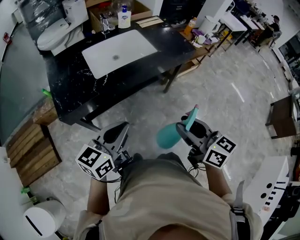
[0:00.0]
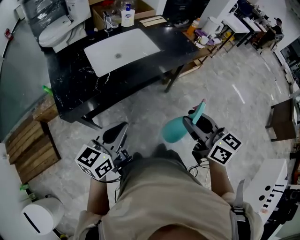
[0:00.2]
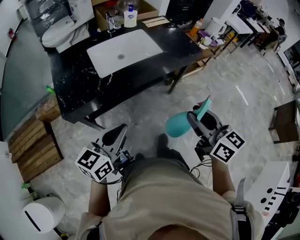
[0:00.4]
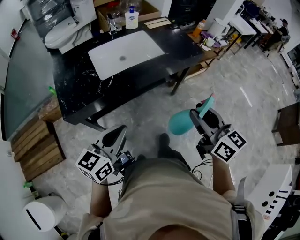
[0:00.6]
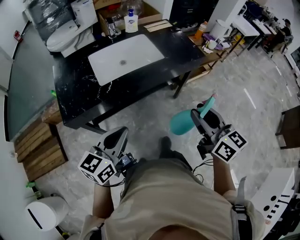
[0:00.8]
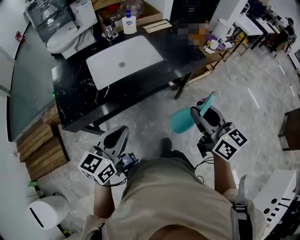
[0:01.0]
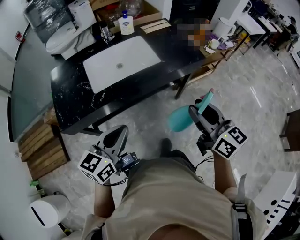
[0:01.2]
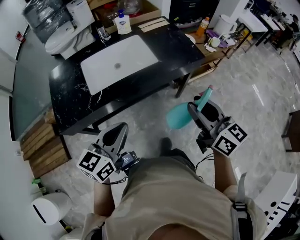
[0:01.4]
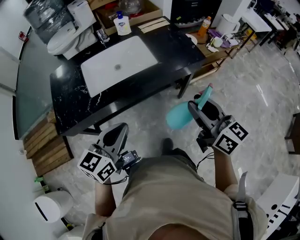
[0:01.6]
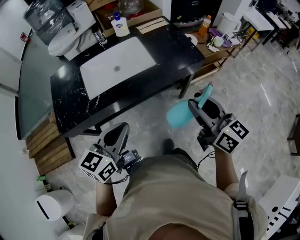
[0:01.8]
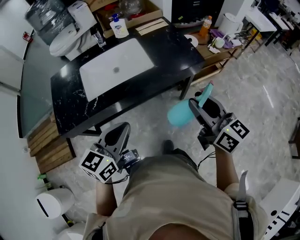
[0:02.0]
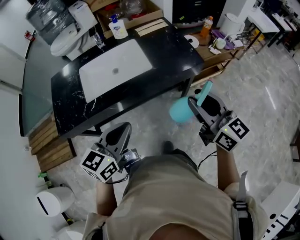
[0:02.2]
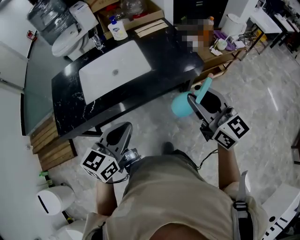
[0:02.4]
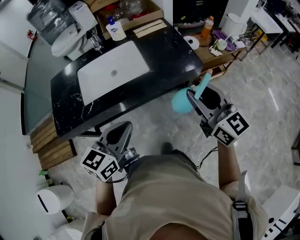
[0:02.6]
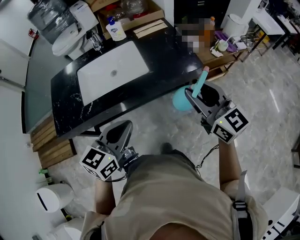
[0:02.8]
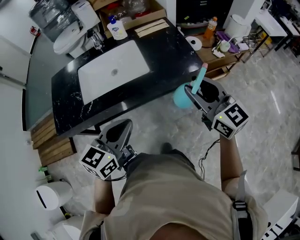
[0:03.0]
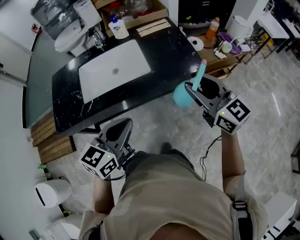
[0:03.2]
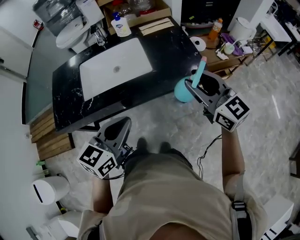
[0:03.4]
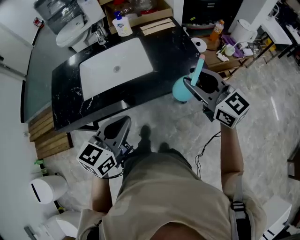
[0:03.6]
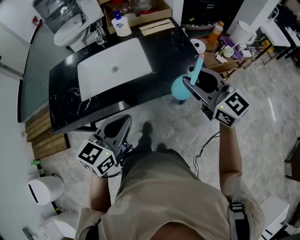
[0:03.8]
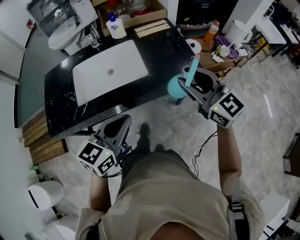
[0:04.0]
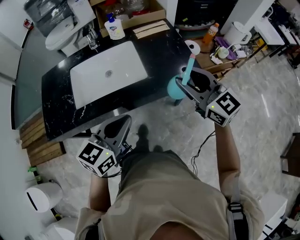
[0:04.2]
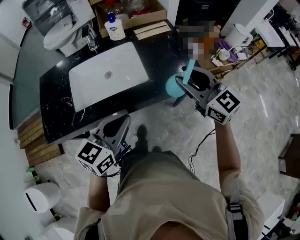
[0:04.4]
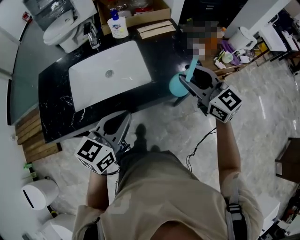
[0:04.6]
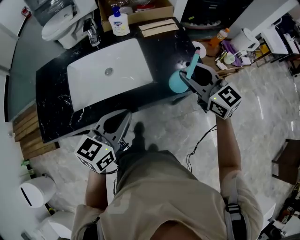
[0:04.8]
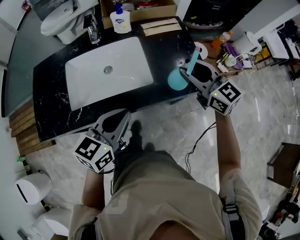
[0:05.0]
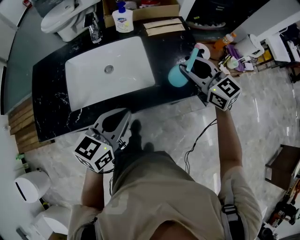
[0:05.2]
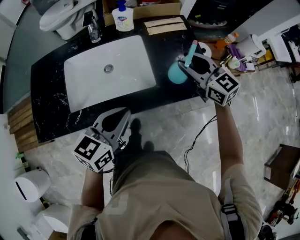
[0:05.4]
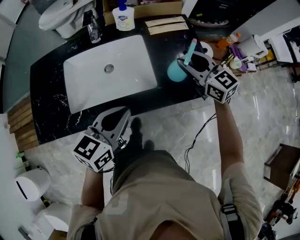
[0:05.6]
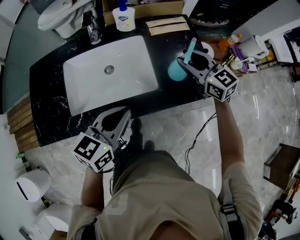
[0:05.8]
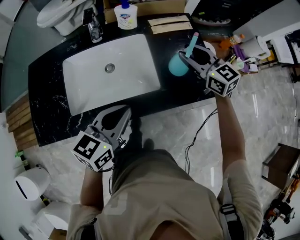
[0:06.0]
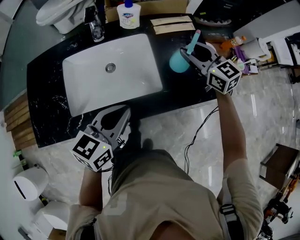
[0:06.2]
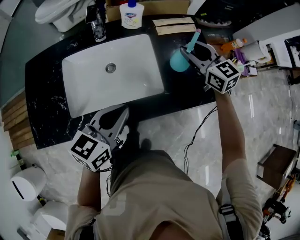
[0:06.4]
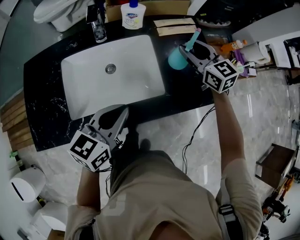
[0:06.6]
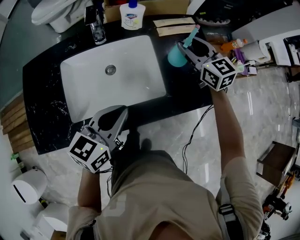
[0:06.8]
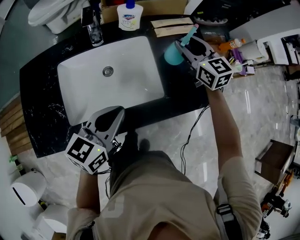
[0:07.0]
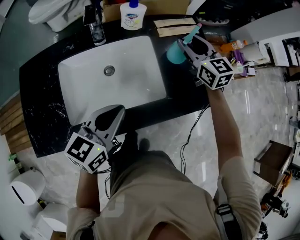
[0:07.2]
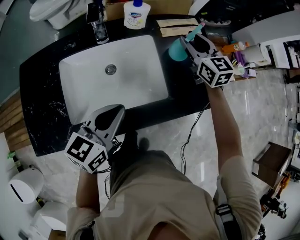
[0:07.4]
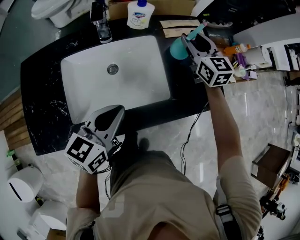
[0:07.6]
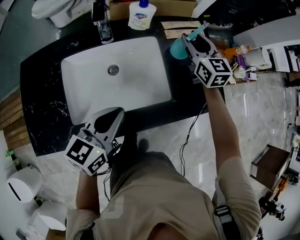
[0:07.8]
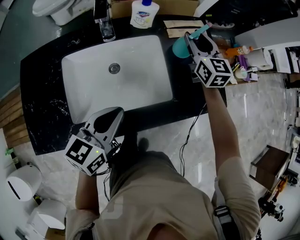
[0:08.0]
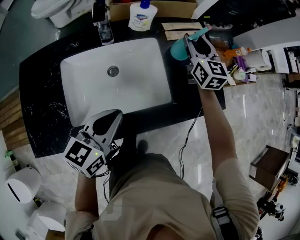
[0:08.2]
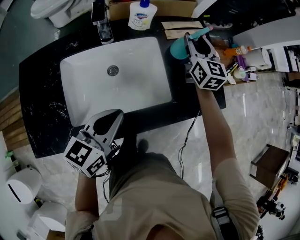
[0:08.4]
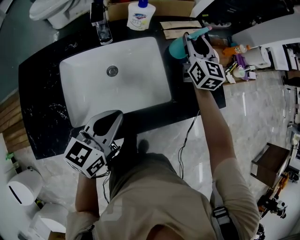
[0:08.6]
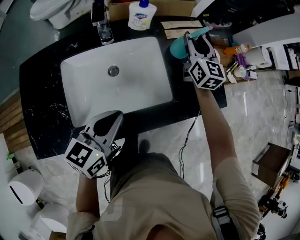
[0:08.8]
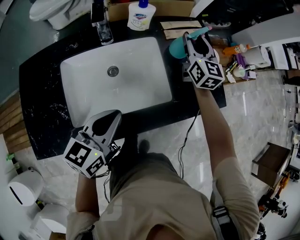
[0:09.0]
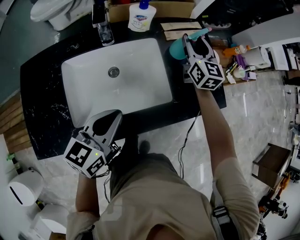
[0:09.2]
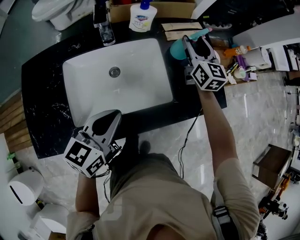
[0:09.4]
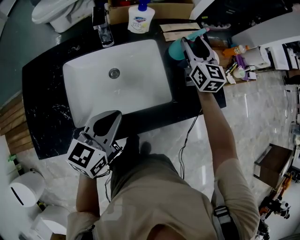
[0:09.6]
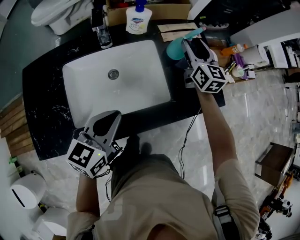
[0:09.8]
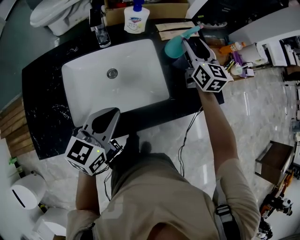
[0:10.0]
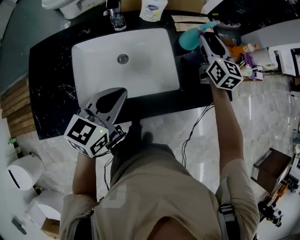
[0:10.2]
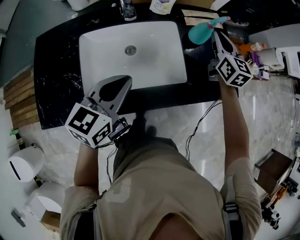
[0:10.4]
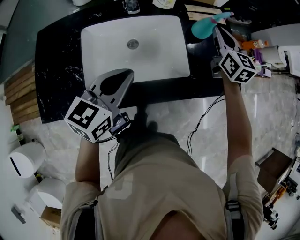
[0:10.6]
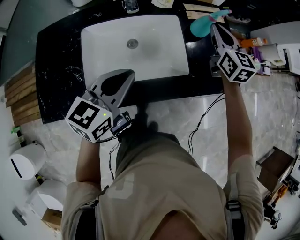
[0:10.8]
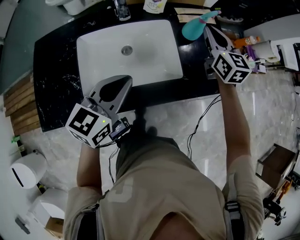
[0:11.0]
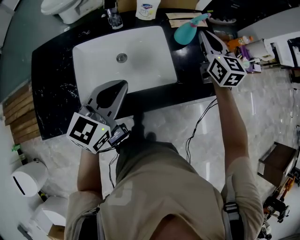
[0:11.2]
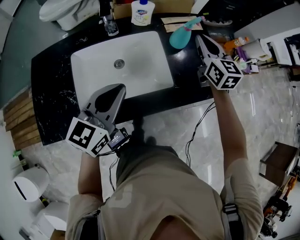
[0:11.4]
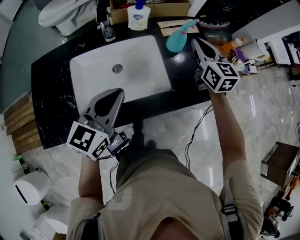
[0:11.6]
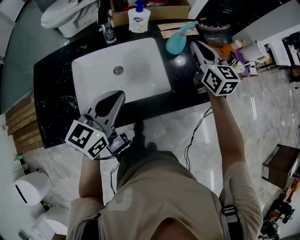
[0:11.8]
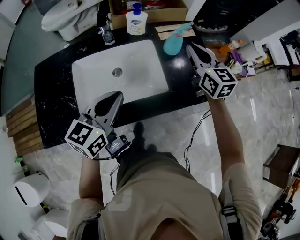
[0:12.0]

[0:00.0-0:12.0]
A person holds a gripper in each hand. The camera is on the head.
0:00.0 to 0:01.6: The left gripper heads forward and to the right, covering some 15 cm. The right gripper shifts about 20 cm forward and to the right.
0:01.6 to 0:03.0: The right gripper heads forward and to the right, covering approximately 15 cm, and rotates some 20 degrees, while the left gripper travels to the right and forward by approximately 15 cm.
0:03.0 to 0:04.4: The grippers both shift forward by approximately 10 cm.
0:04.4 to 0:06.0: The left gripper shifts about 10 cm forward; the right gripper moves forward and downward, approximately 20 cm.
0:06.0 to 0:07.6: The left gripper travels to the left by roughly 5 cm, while the right gripper moves forward, roughly 10 cm.
0:07.6 to 0:09.0: There are only small adjustments of the grippers.
0:09.0 to 0:10.4: The right gripper closes.
0:10.4 to 0:12.0: The right gripper moves backward, about 5 cm.

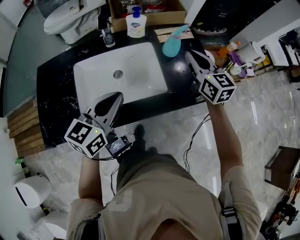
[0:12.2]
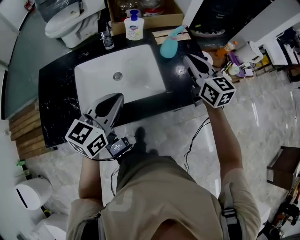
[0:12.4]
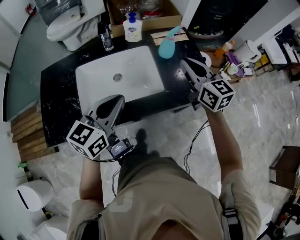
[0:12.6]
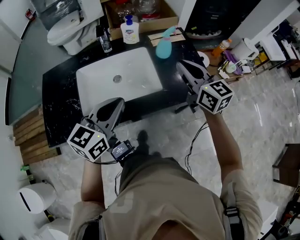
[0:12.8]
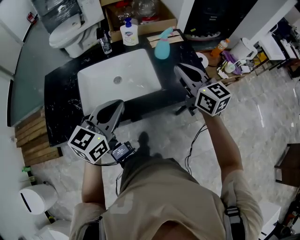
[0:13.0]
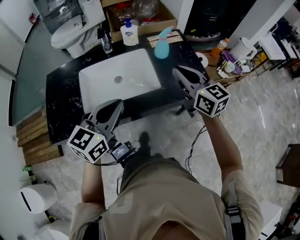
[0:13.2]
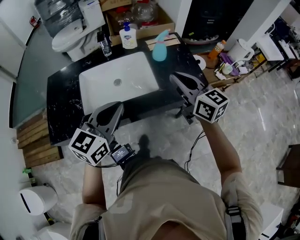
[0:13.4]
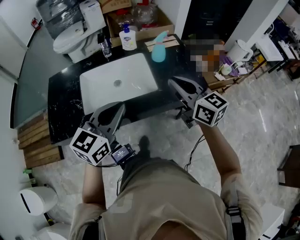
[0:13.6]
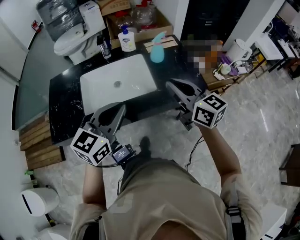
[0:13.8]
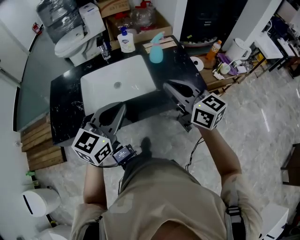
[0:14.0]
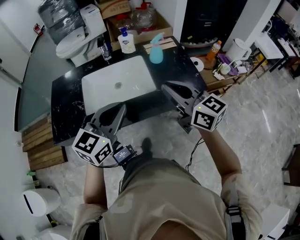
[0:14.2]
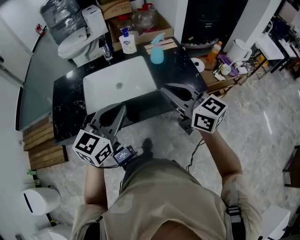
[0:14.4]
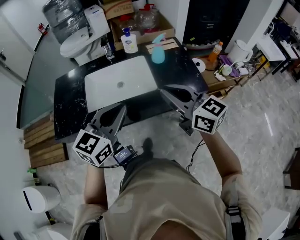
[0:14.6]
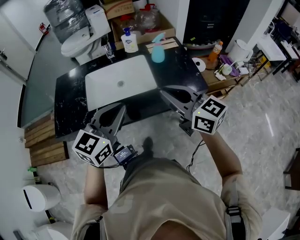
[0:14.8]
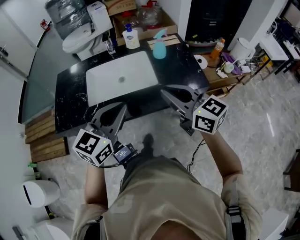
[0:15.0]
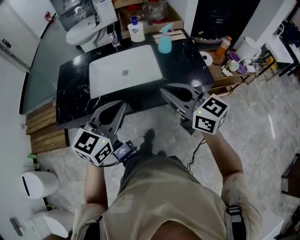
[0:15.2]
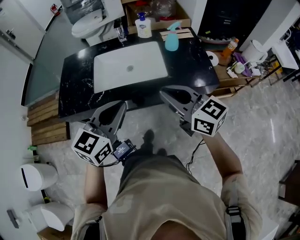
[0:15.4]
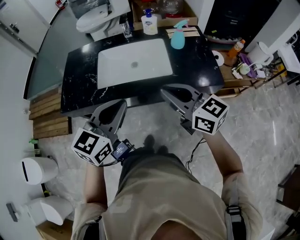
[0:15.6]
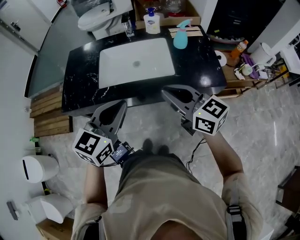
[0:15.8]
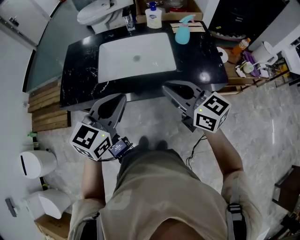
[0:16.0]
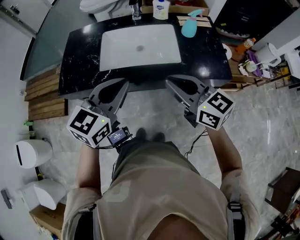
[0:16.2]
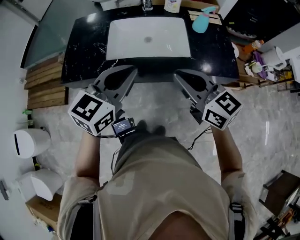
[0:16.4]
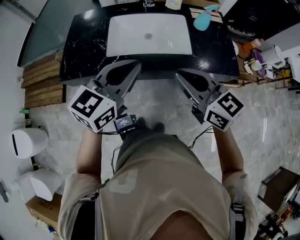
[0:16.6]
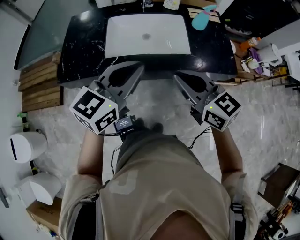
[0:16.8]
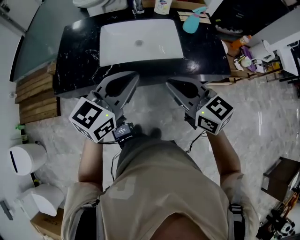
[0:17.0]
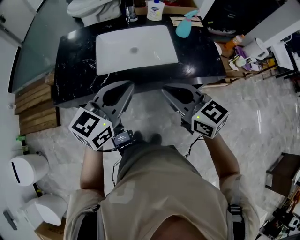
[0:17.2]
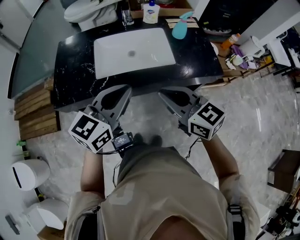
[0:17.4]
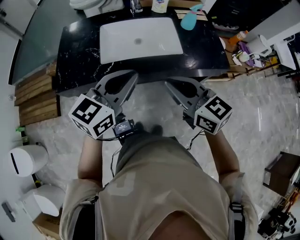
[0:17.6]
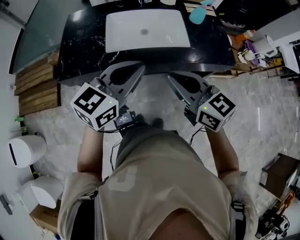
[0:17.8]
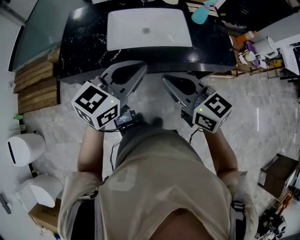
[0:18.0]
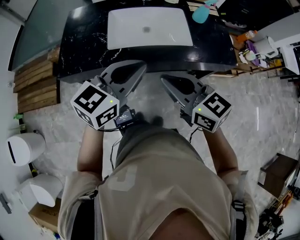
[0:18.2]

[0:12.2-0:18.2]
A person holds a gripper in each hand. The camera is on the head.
0:12.2 to 0:13.8: The left gripper is displaced backward, upward and to the right by approximately 15 cm. Meanwhile the right gripper heads backward, covering roughly 20 cm, and changes its angle by approximately 20 degrees.
0:13.8 to 0:15.2: Both grippers travel together backward, some 5 cm.
0:15.2 to 0:16.6: The grippers both shift to the left by approximately 5 cm.
0:16.6 to 0:18.2: The right gripper shifts roughly 10 cm to the left.

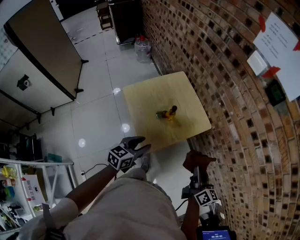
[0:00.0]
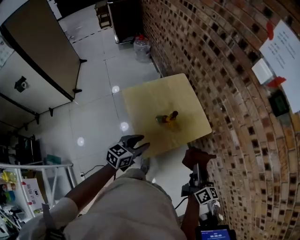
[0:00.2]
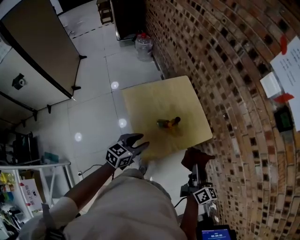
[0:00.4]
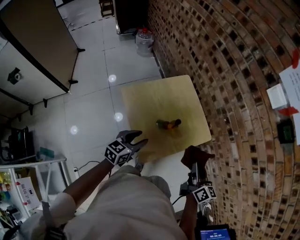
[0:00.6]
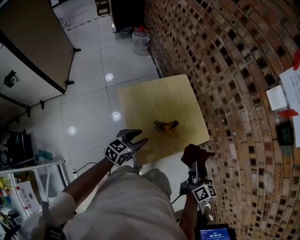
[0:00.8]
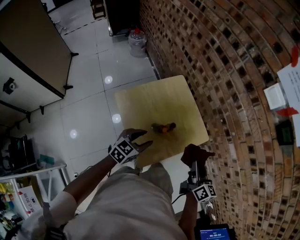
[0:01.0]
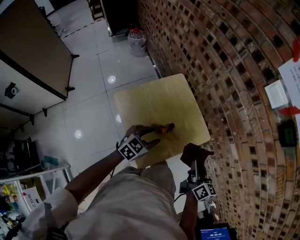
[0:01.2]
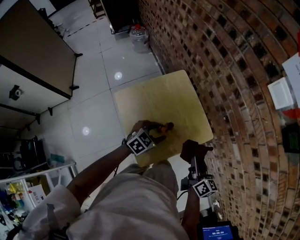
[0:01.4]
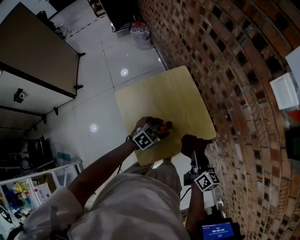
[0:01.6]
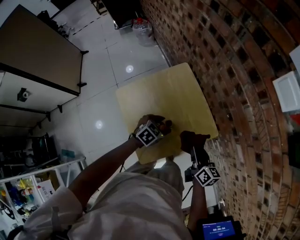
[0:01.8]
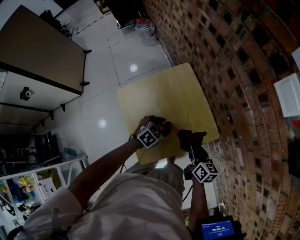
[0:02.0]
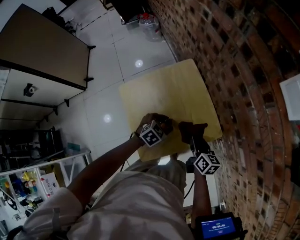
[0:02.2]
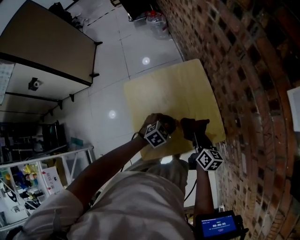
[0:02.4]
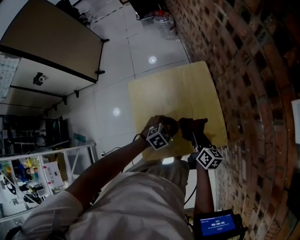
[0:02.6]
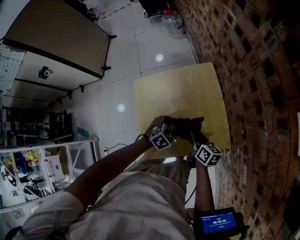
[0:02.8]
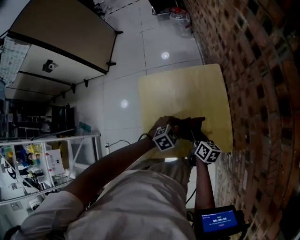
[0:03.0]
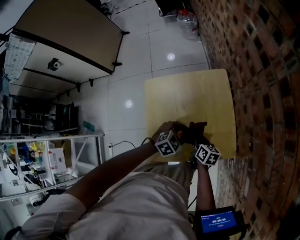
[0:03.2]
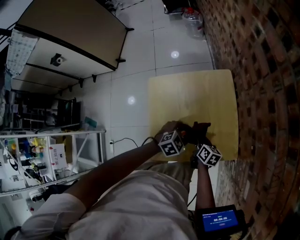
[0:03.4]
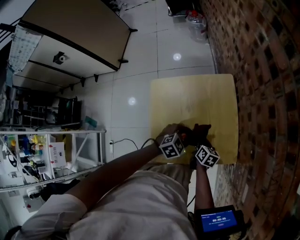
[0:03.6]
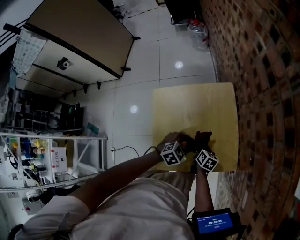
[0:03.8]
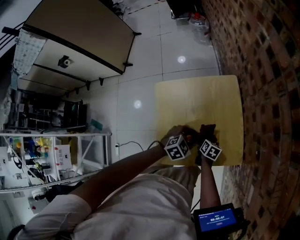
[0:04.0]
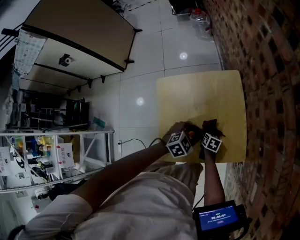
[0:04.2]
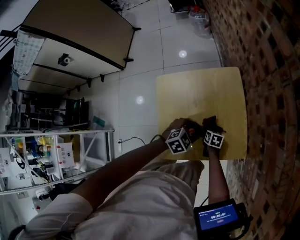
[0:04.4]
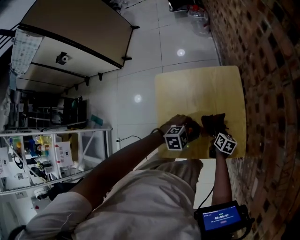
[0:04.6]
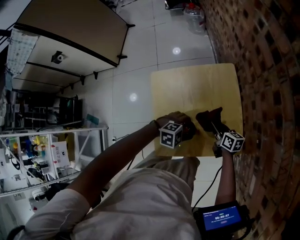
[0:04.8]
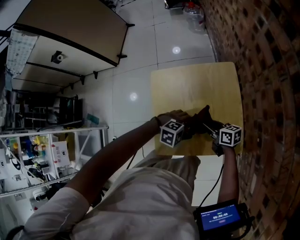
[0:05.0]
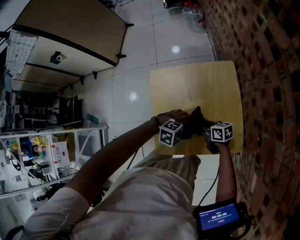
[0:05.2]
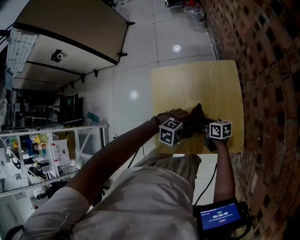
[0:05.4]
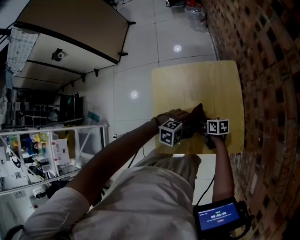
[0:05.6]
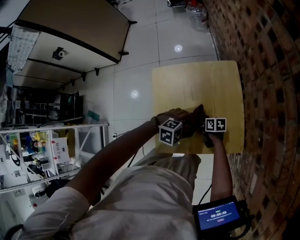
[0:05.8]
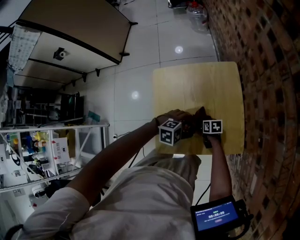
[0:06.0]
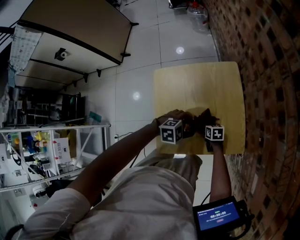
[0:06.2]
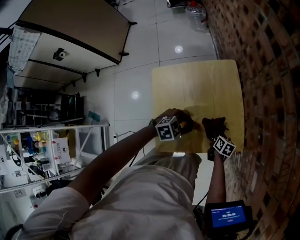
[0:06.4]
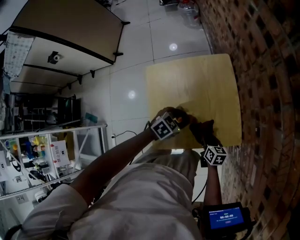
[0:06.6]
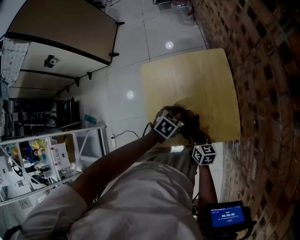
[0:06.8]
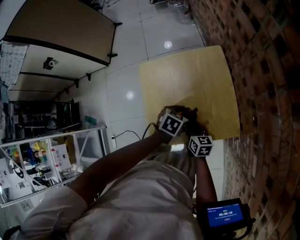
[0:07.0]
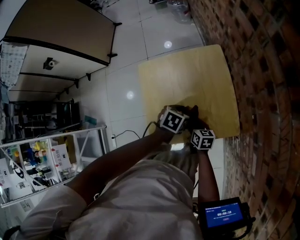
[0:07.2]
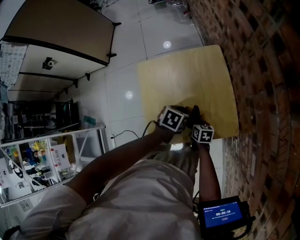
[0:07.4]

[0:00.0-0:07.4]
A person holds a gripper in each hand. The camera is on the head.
0:00.0 to 0:01.4: The grippers both shift forward by some 20 cm. The left gripper turns by about 30 degrees.
0:01.4 to 0:03.0: The right gripper goes roughly 15 cm downward, and changes its angle by roughly 40 degrees. The left gripper travels downward by some 10 cm, and rotates approximately 20 degrees.
0:03.0 to 0:04.4: The right gripper travels downward by about 15 cm, and swivels approximately 30 degrees.
0:04.4 to 0:06.0: The right gripper reaches some 15 cm upward, then returns, and swivels some 20 degrees, while the left gripper moves approximately 5 cm, and changes its angle by some 30 degrees.
0:06.0 to 0:07.4: The right gripper changes its angle by roughly 20 degrees; the left gripper rotates around the line of its fingers by roughly 60 degrees, counterclockwise from behind.
